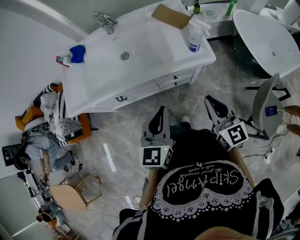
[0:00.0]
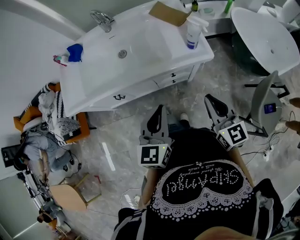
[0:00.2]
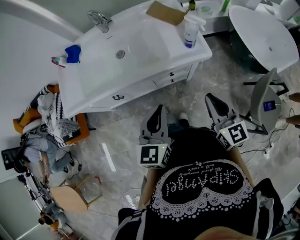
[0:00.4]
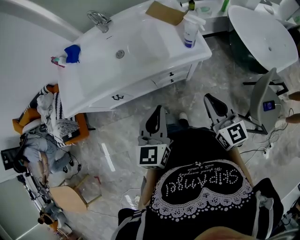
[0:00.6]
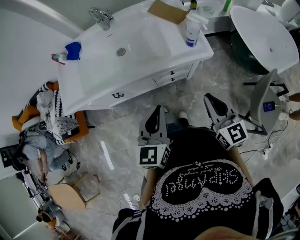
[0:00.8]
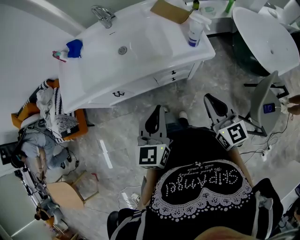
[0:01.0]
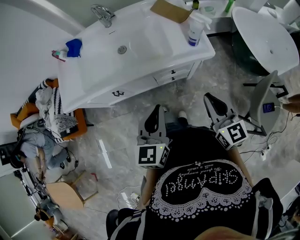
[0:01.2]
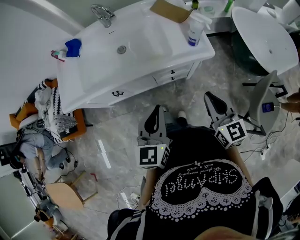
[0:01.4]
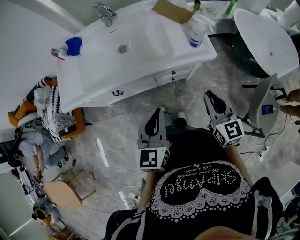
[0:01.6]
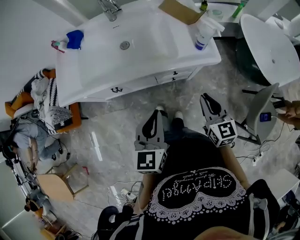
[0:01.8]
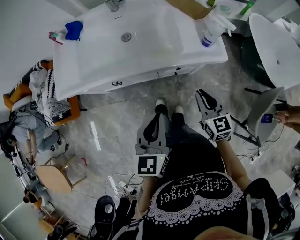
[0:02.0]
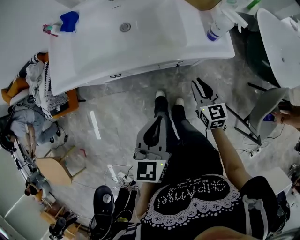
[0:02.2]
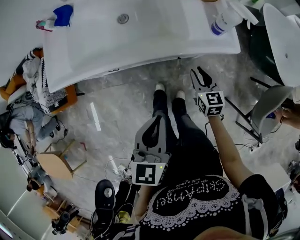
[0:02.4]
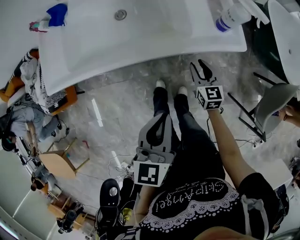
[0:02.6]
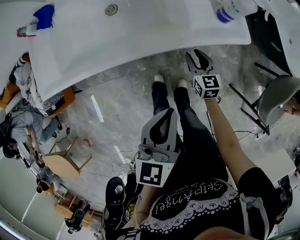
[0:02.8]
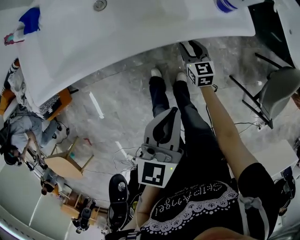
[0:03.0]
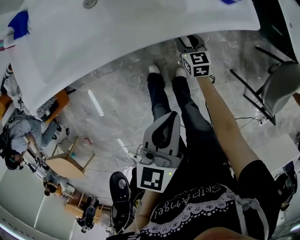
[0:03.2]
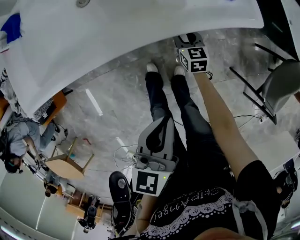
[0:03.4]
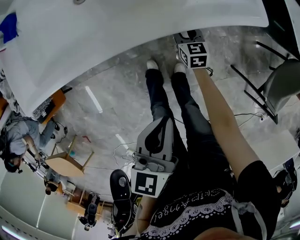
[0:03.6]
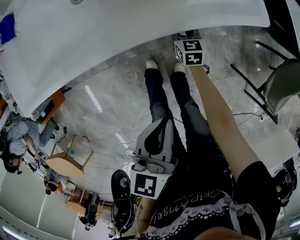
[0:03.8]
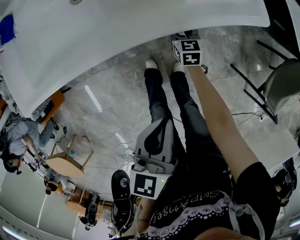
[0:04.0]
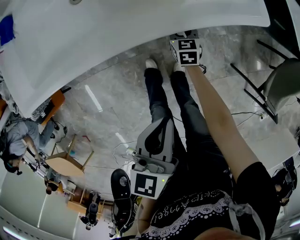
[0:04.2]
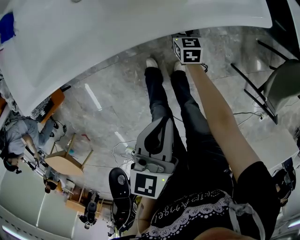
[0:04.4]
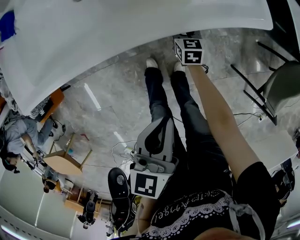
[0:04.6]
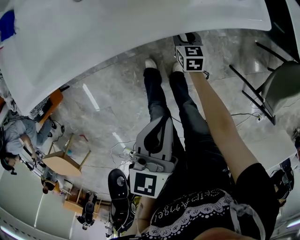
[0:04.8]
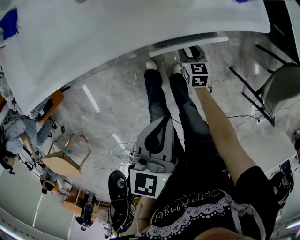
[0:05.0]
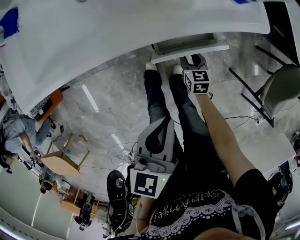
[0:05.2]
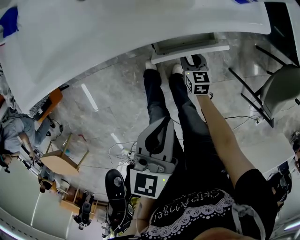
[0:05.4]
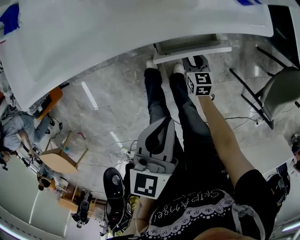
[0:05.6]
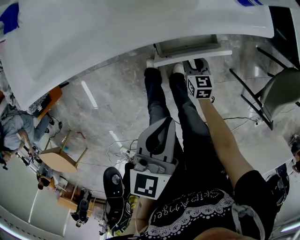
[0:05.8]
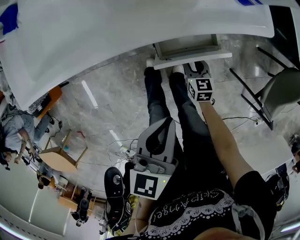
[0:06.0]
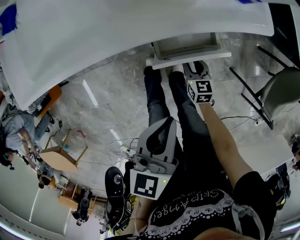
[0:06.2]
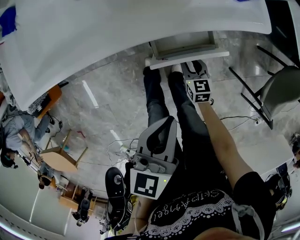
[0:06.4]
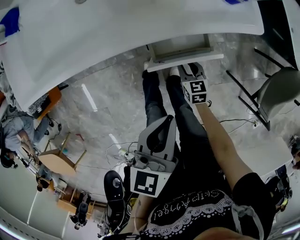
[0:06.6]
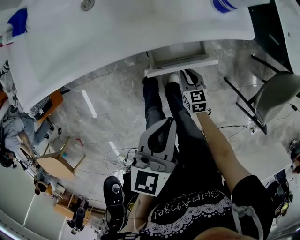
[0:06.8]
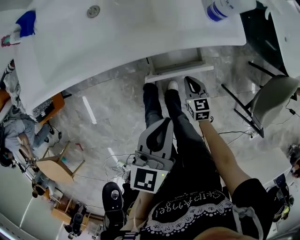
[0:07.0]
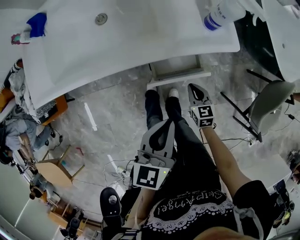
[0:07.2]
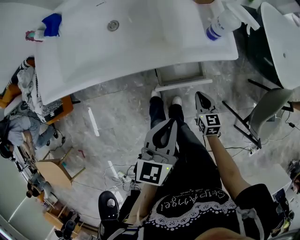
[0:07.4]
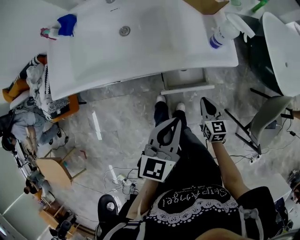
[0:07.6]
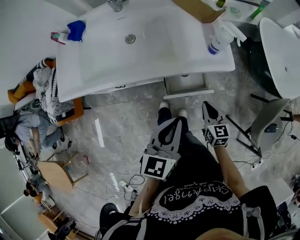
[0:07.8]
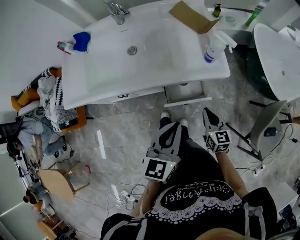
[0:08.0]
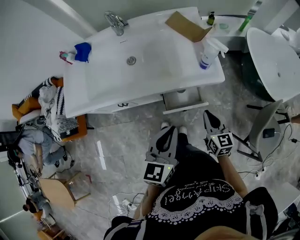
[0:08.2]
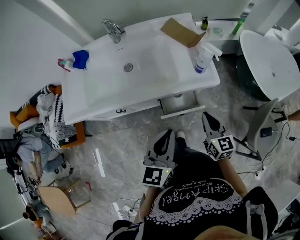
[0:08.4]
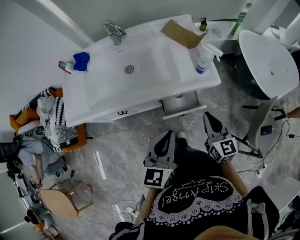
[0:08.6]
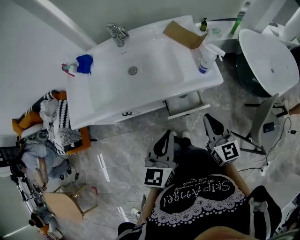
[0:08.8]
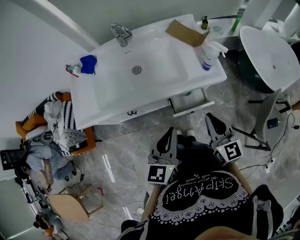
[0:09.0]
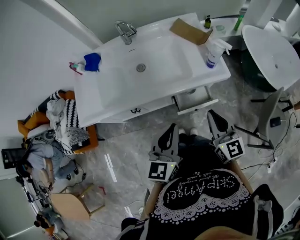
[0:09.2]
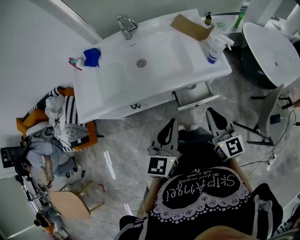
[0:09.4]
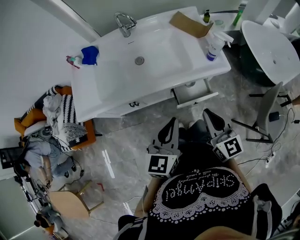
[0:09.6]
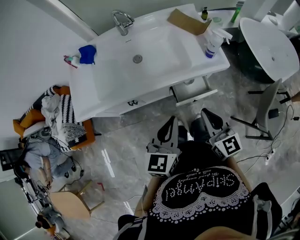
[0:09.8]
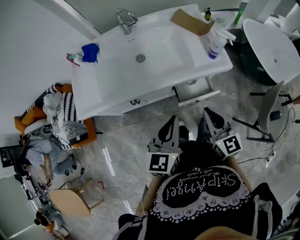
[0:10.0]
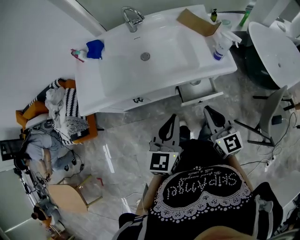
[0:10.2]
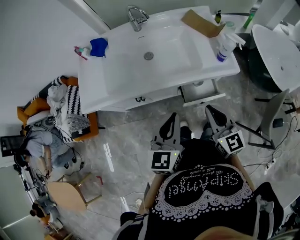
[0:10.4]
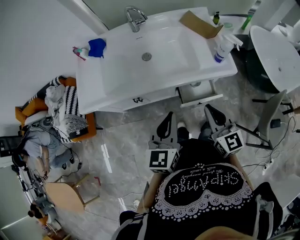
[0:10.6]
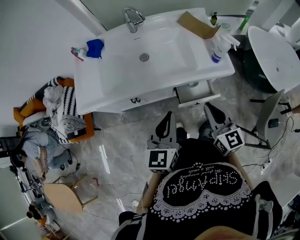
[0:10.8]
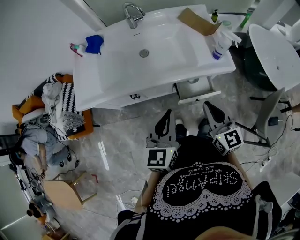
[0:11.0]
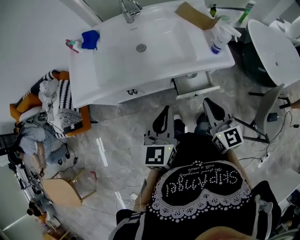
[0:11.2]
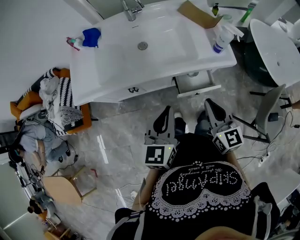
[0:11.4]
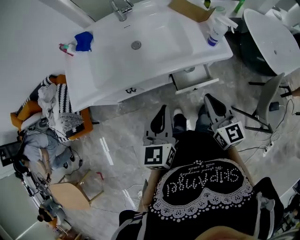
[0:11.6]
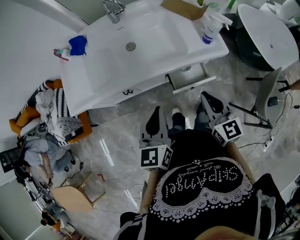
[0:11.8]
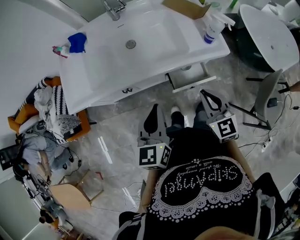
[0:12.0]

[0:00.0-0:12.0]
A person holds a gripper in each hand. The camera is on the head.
0:00.0 to 0:01.6: The grippers stay close to where they were, moving slightly.
0:01.6 to 0:03.0: The right gripper travels downward and forward by approximately 35 cm, and opens; the left gripper is displaced downward by approximately 10 cm.
0:03.0 to 0:04.4: The right gripper shifts roughly 10 cm downward. Meanwhile the left gripper moves some 5 cm.
0:04.4 to 0:06.0: The right gripper is displaced backward by roughly 15 cm.
0:06.0 to 0:07.6: The left gripper moves upward, some 10 cm, while the right gripper moves upward, some 20 cm, and closes.
0:07.6 to 0:09.0: The right gripper goes about 25 cm upward, and turns by approximately 20 degrees; the left gripper heads upward and to the left, covering roughly 10 cm.
0:09.0 to 0:10.4: The grippers both shift to the left by some 5 cm.
0:10.4 to 0:12.0: There are only small adjustments of the grippers.

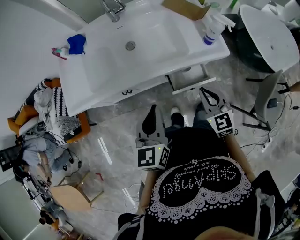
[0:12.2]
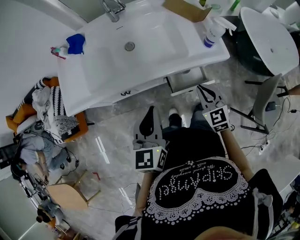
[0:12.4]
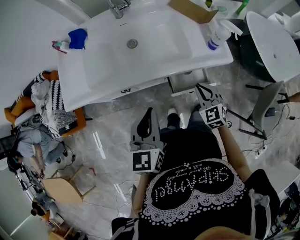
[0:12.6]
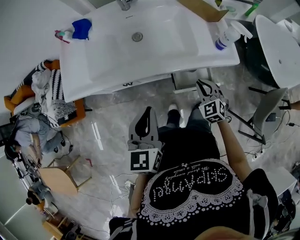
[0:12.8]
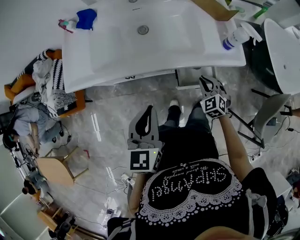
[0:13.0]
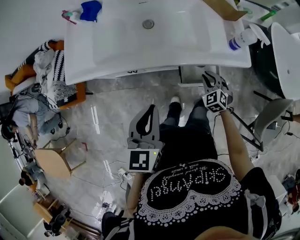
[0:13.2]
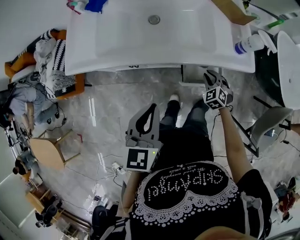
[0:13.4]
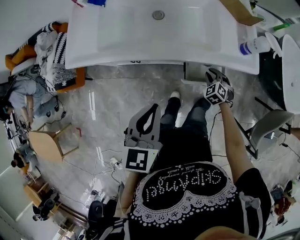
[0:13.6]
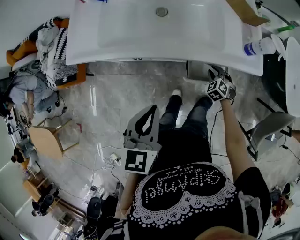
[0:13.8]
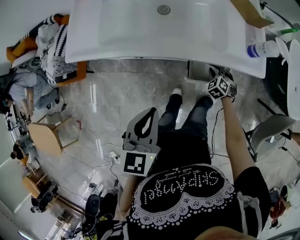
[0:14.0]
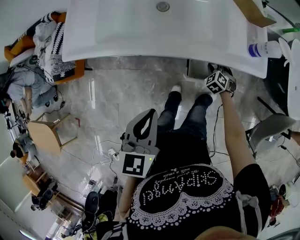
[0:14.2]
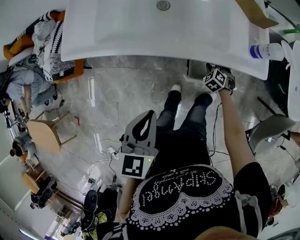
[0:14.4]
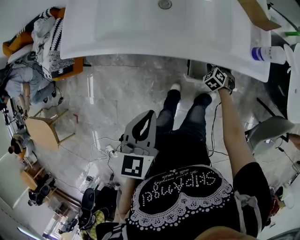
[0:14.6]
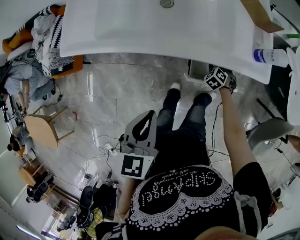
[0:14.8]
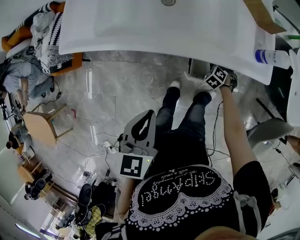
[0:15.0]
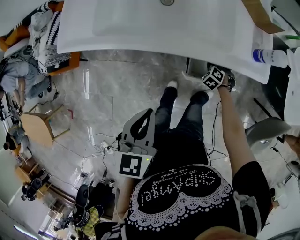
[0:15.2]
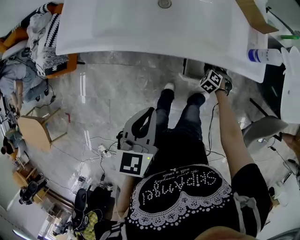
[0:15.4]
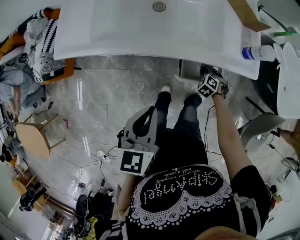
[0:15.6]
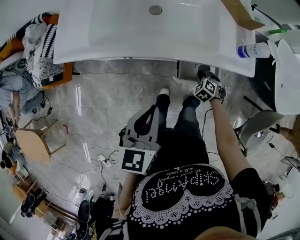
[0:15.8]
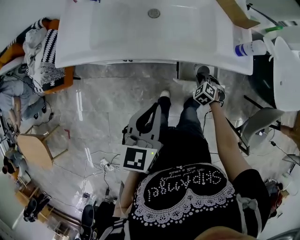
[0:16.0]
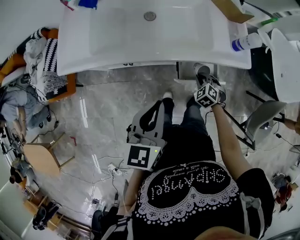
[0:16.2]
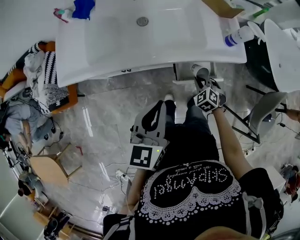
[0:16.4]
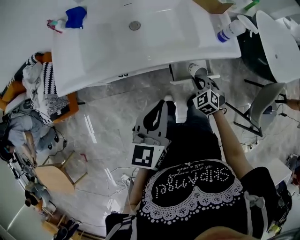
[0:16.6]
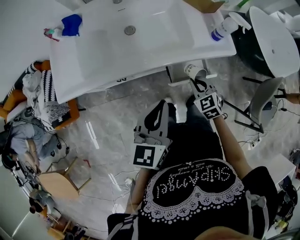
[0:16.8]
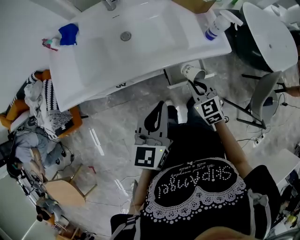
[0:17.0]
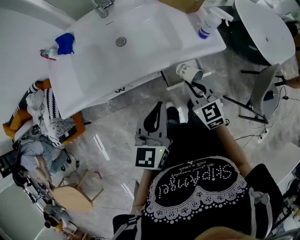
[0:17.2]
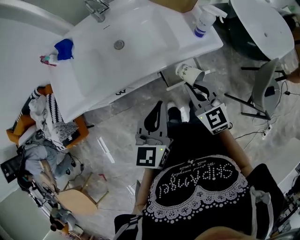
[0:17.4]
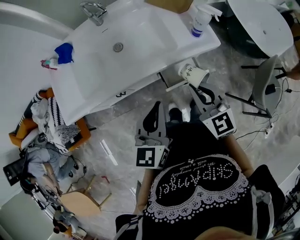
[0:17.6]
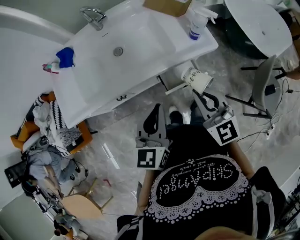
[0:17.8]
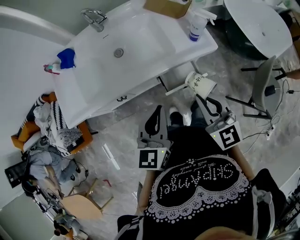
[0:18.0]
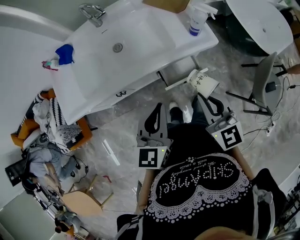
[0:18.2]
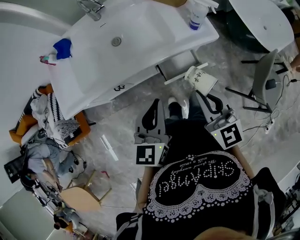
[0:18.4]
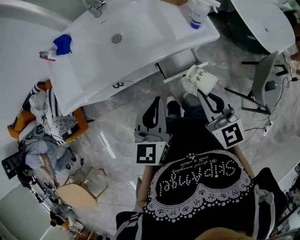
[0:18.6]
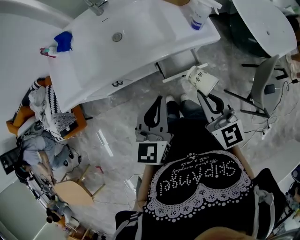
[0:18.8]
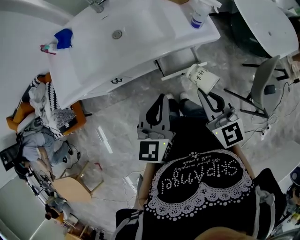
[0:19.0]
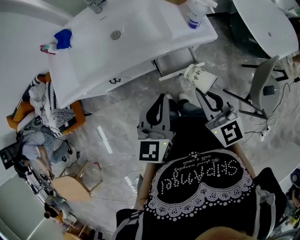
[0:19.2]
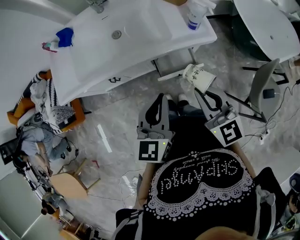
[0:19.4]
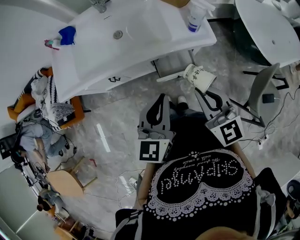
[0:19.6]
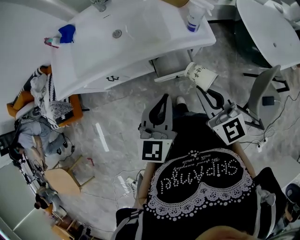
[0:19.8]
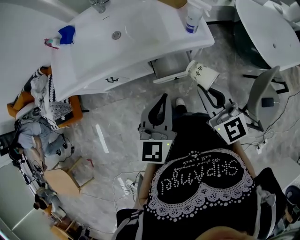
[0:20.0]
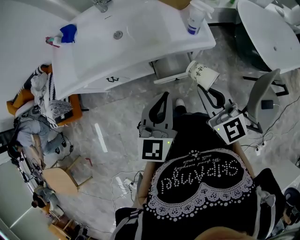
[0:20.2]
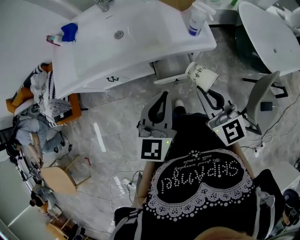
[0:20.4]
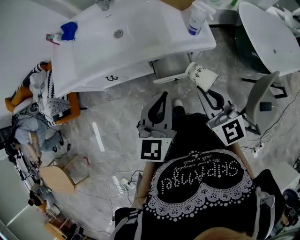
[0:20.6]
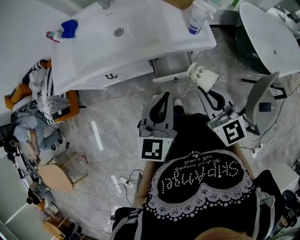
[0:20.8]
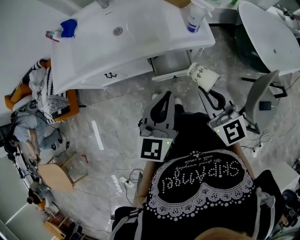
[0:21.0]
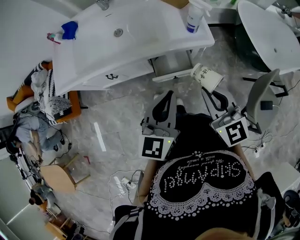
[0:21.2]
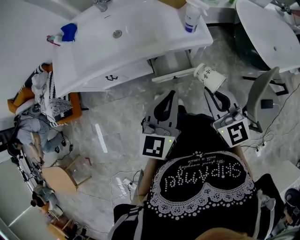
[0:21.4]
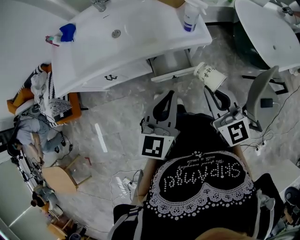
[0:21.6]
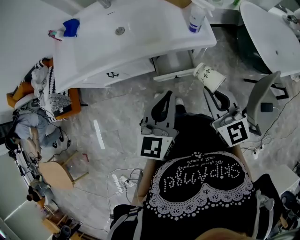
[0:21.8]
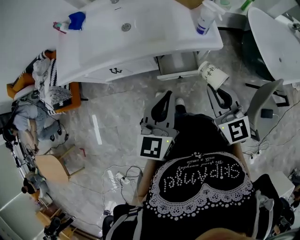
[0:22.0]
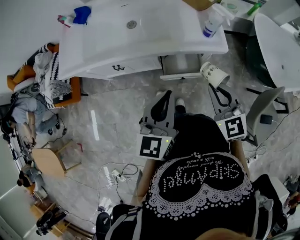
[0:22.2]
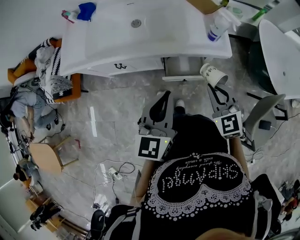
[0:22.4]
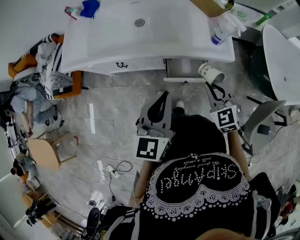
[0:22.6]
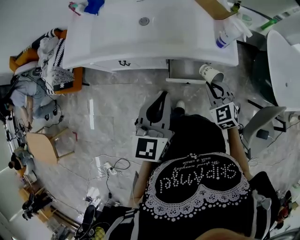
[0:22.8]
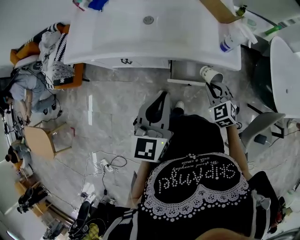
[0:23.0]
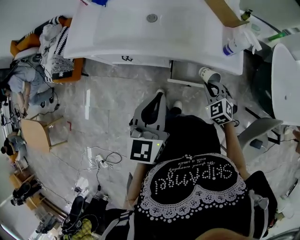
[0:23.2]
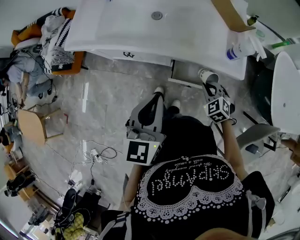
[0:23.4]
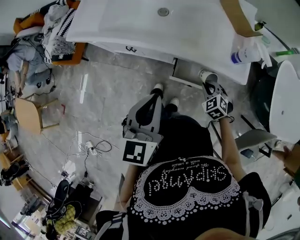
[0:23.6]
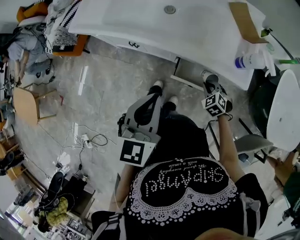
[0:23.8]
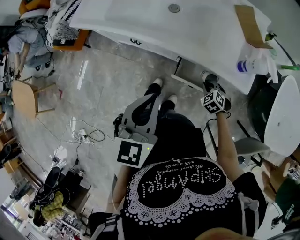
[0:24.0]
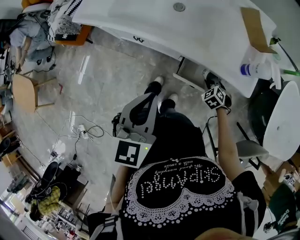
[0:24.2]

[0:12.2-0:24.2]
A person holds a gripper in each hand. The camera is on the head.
0:12.2 to 0:13.8: The right gripper heads downward, covering about 25 cm, and angles its fingers downward, by roughly 30 degrees.
0:13.8 to 0:15.2: The right gripper moves downward, approximately 5 cm, and turns by some 20 degrees.
0:15.2 to 0:16.6: The right gripper shifts approximately 20 cm upward and backward, and rotates roughly 30 degrees; the left gripper moves about 5 cm, and changes its angle by some 20 degrees.
0:16.6 to 0:18.2: The right gripper shifts about 25 cm upward, and tilts its fingers approximately 40 degrees upward; the left gripper travels to the right by some 5 cm.
0:18.2 to 0:19.8: The two grippers go about 5 cm to the right.
0:19.8 to 0:21.2: The grippers make only small movements.
0:21.2 to 0:22.6: The left gripper shifts some 5 cm to the left. The right gripper is displaced downward and forward by roughly 15 cm, and swivels some 30 degrees.
0:22.6 to 0:24.2: The left gripper moves to the left, about 5 cm, and swivels about 20 degrees. The right gripper shifts some 25 cm downward, and angles its fingers downward, by about 30 degrees.
